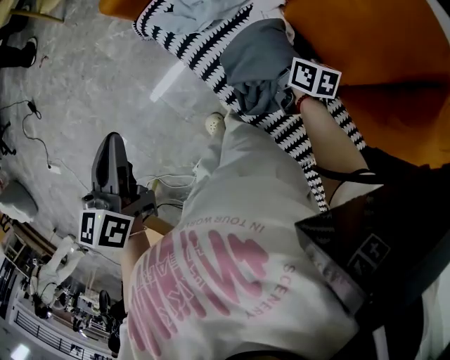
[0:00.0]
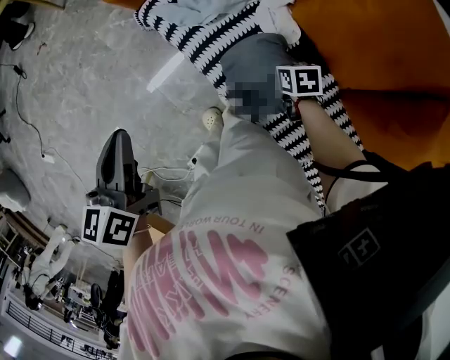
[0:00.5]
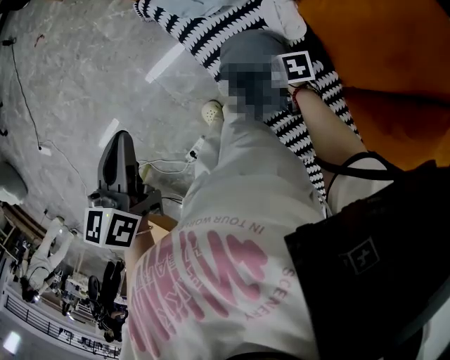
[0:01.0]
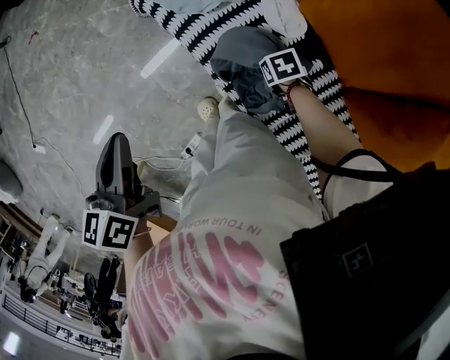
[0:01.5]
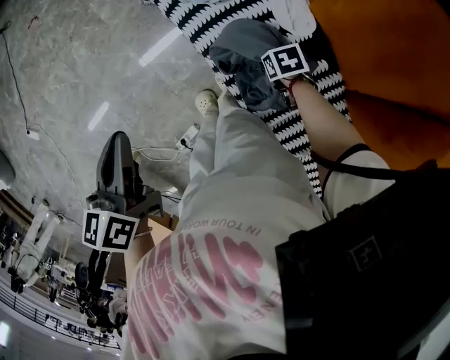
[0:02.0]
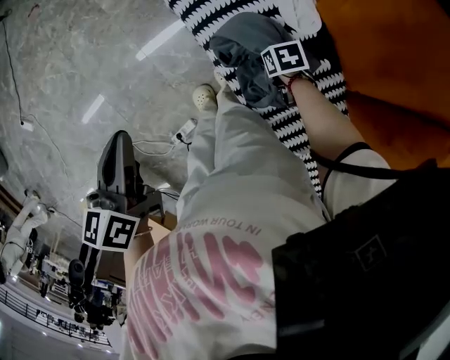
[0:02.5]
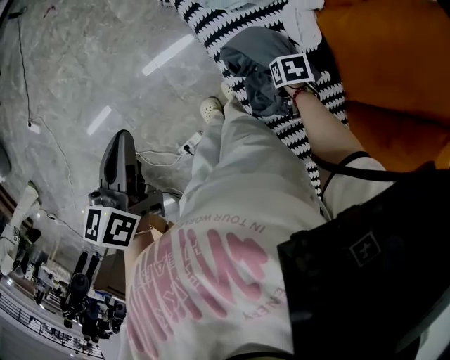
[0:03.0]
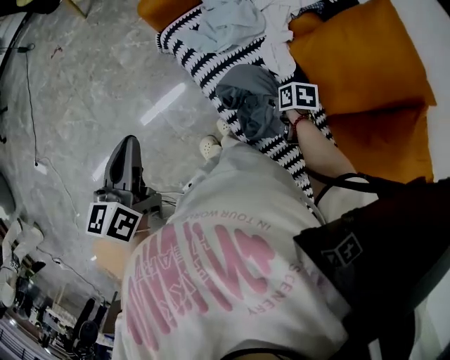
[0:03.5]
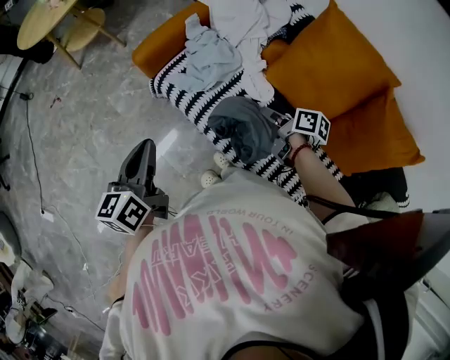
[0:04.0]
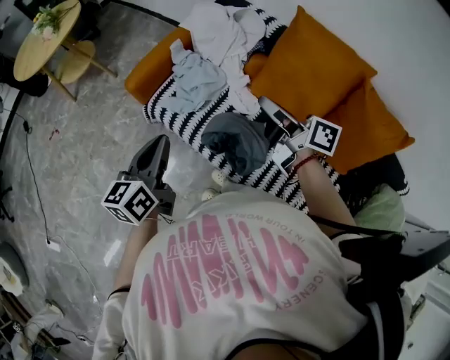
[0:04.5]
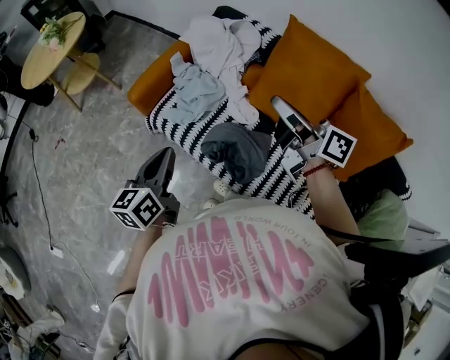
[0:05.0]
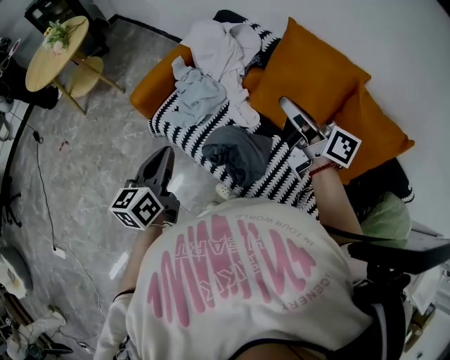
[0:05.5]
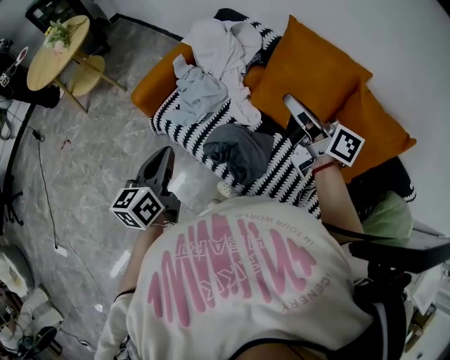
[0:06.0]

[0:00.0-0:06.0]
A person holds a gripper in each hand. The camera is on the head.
0:02.0 to 0:04.0: The left gripper shifts by about 5 cm, and rotates about 30 degrees.
0:04.0 to 0:06.0: The left gripper moves roughly 5 cm.

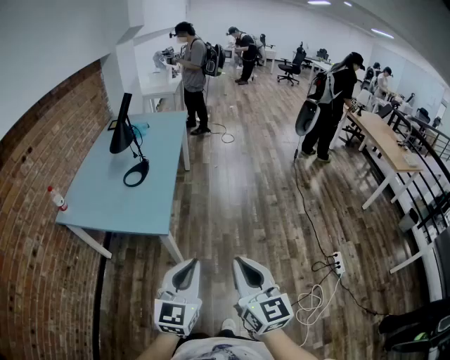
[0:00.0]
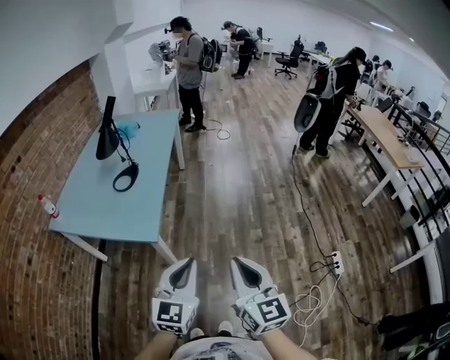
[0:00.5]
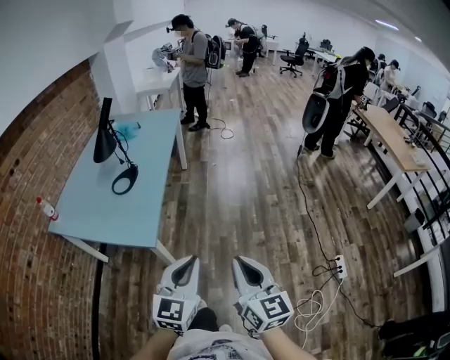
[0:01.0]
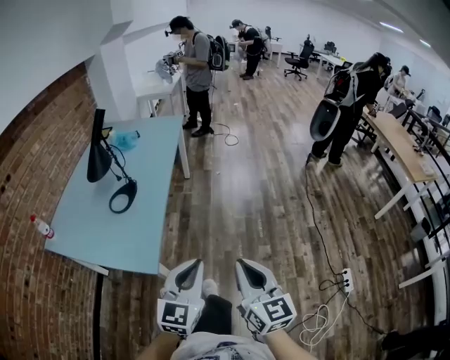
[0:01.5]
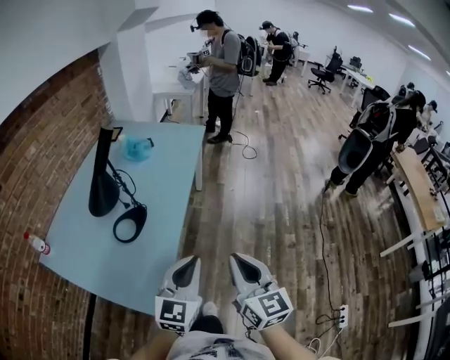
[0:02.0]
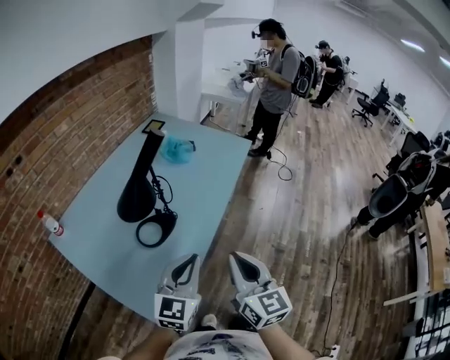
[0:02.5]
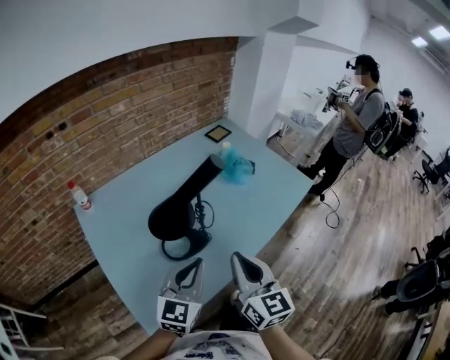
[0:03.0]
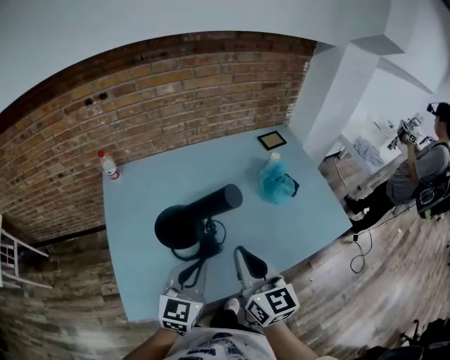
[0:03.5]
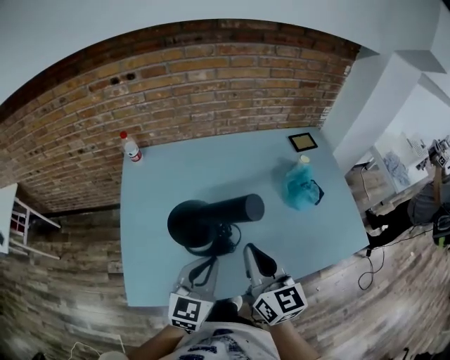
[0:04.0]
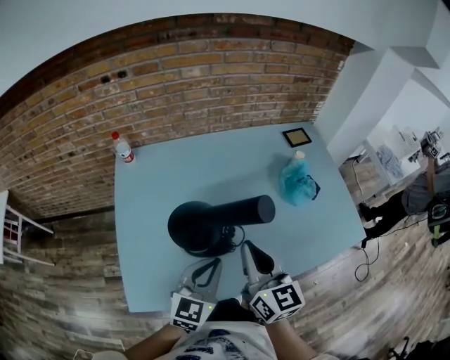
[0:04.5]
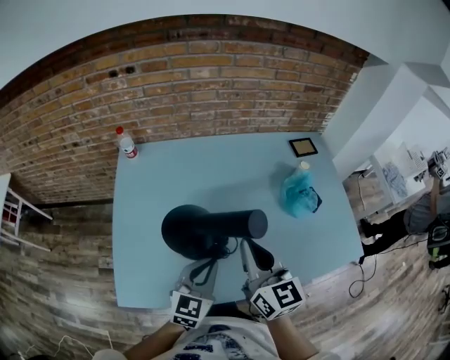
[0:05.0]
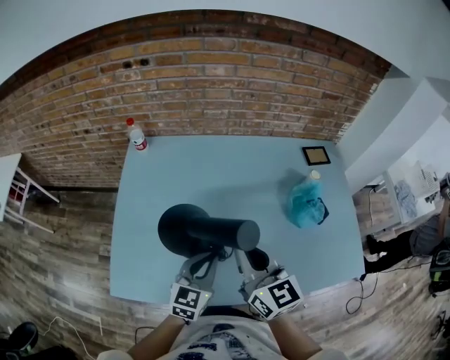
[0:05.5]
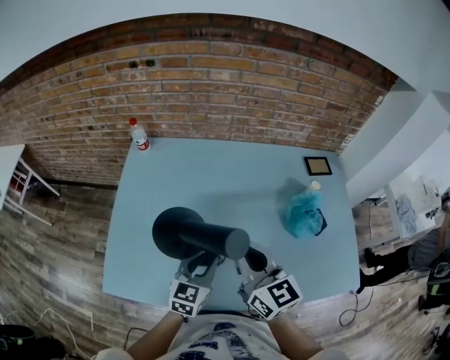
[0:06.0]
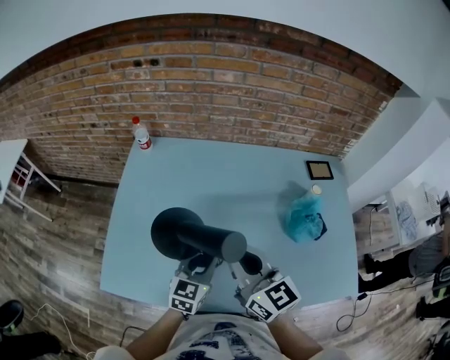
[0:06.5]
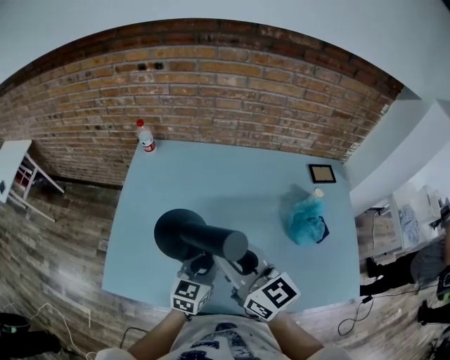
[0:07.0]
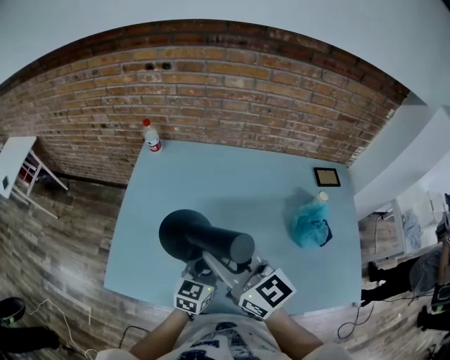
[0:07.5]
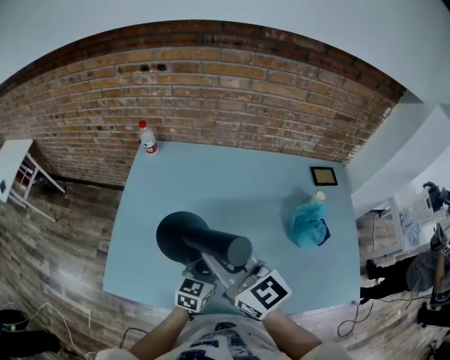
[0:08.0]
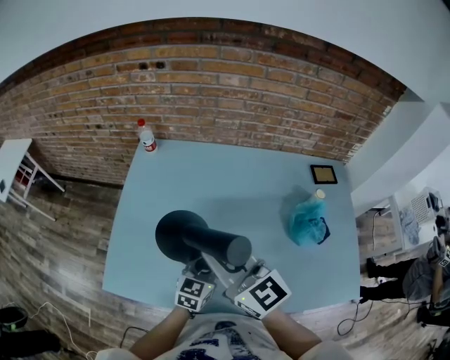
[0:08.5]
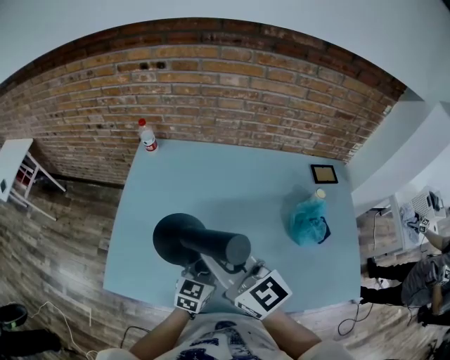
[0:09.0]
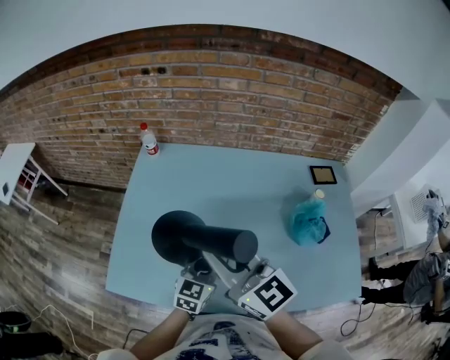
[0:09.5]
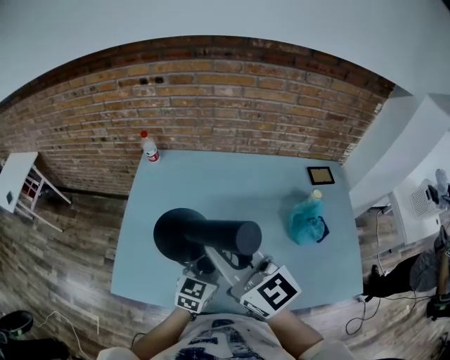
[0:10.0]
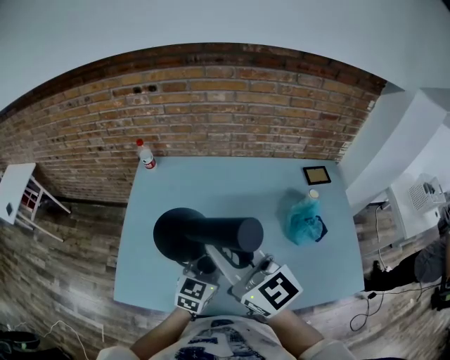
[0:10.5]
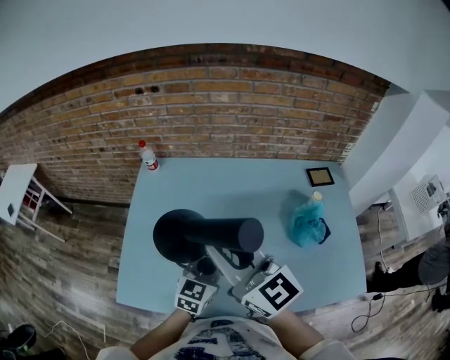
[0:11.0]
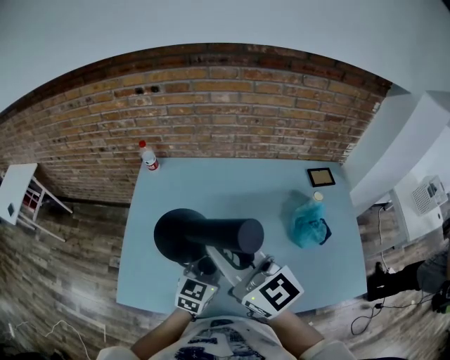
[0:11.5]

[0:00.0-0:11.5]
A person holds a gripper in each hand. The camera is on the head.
0:00.0 to 0:02.0: The pair of grippers is taken forward, approximately 50 cm.
0:02.0 to 0:04.0: The left gripper moves about 35 cm, and changes its angle by some 70 degrees, while the right gripper ends up about 50 cm from where it was, and rotates roughly 70 degrees.
0:04.0 to 0:06.0: The right gripper shifts some 10 cm forward, and turns by approximately 20 degrees, while the left gripper goes approximately 10 cm downward and forward.
0:06.0 to 0:07.5: The right gripper is displaced to the left by some 5 cm, and opens its fingers.
0:07.5 to 0:09.5: The right gripper closes.
0:09.5 to 0:11.5: The two grippers go approximately 5 cm upward.

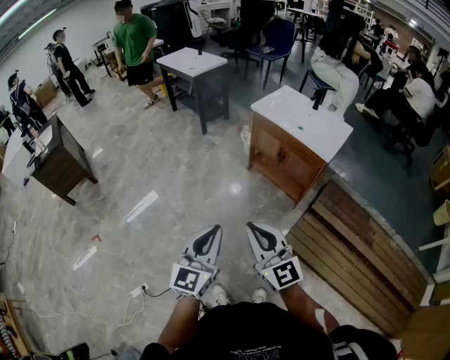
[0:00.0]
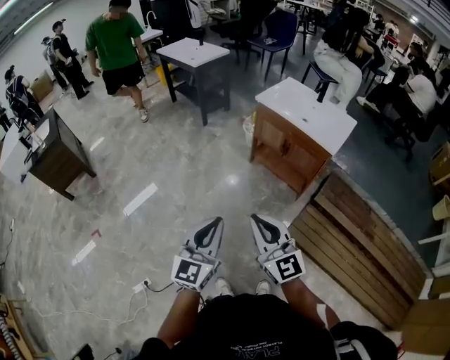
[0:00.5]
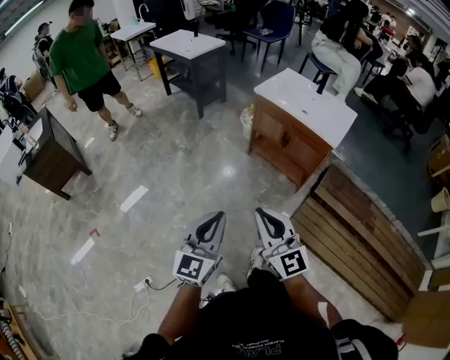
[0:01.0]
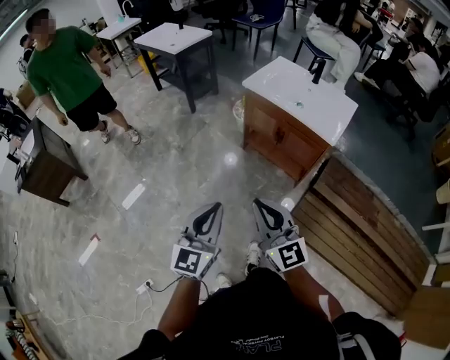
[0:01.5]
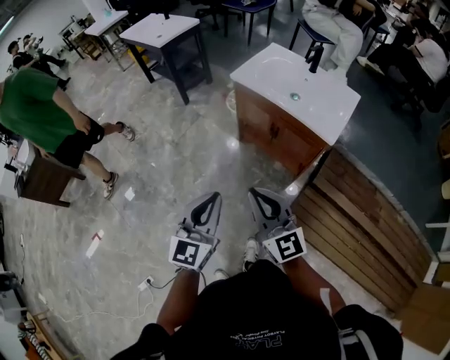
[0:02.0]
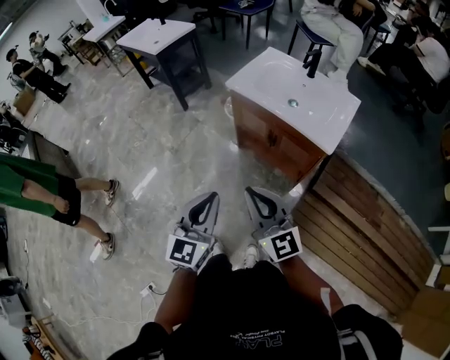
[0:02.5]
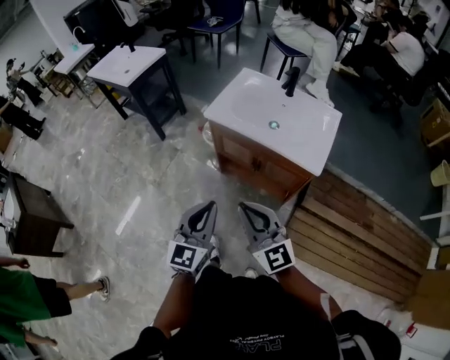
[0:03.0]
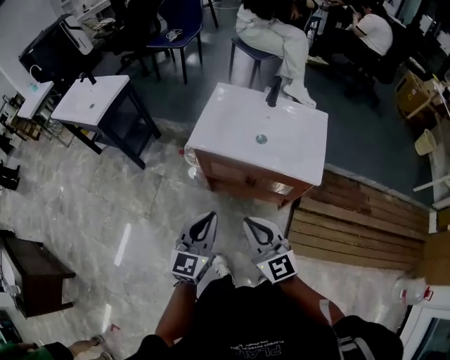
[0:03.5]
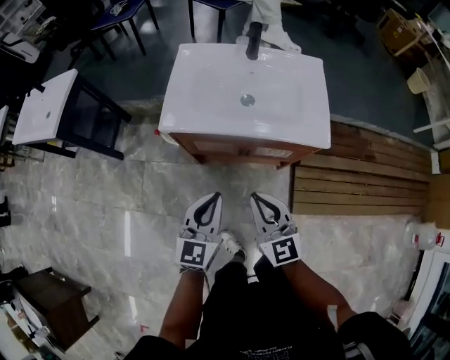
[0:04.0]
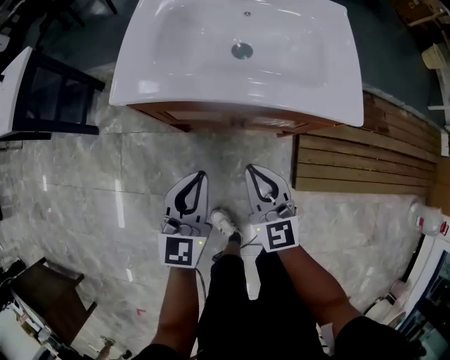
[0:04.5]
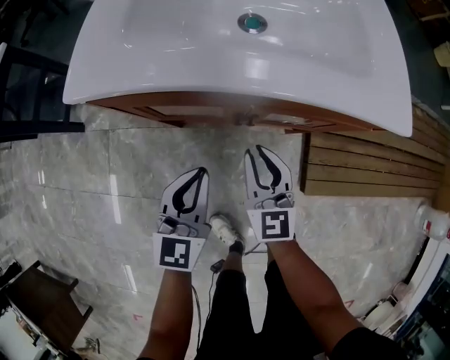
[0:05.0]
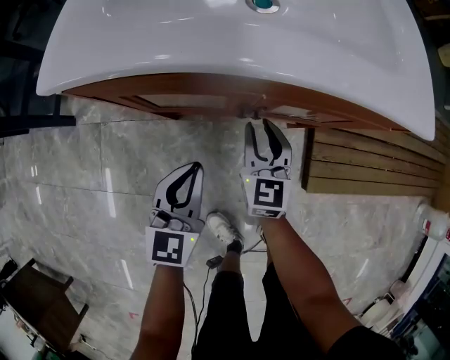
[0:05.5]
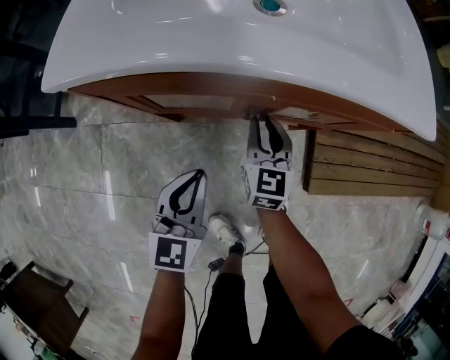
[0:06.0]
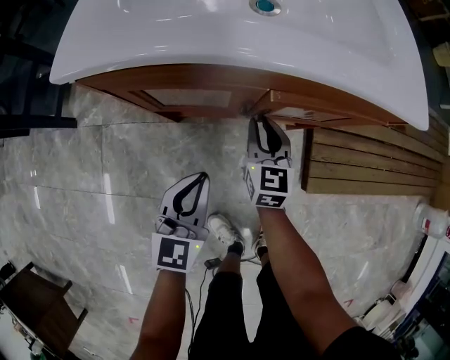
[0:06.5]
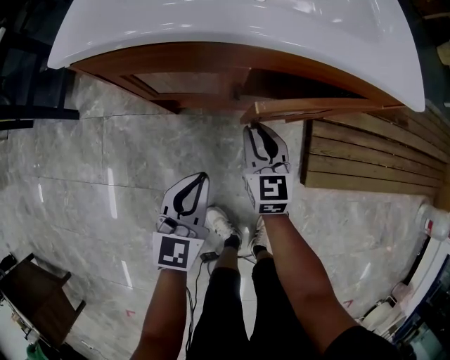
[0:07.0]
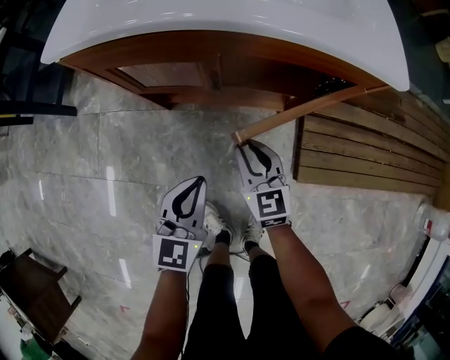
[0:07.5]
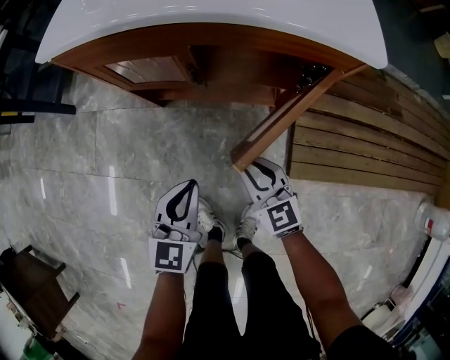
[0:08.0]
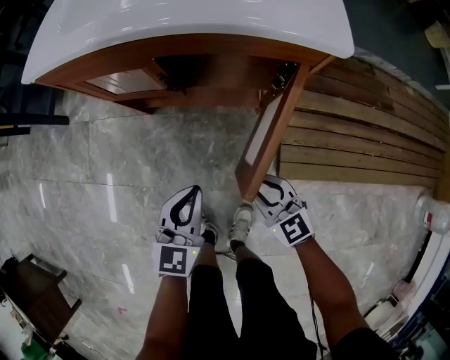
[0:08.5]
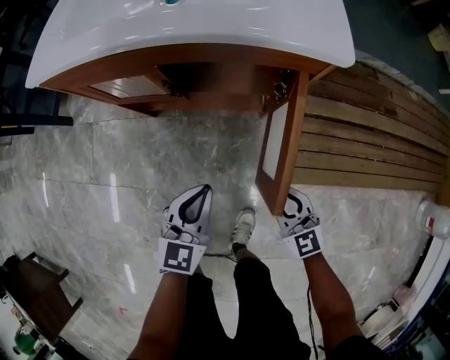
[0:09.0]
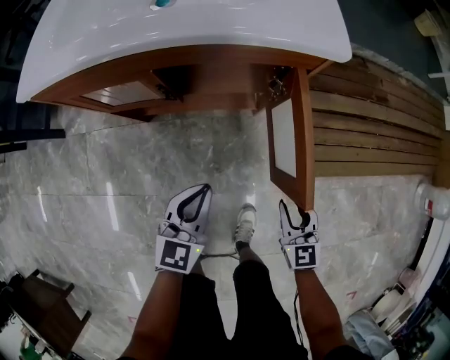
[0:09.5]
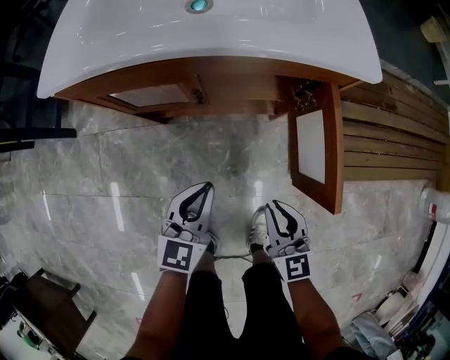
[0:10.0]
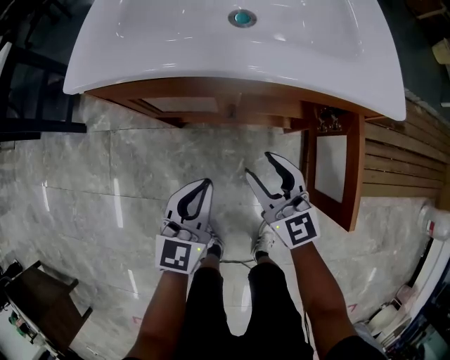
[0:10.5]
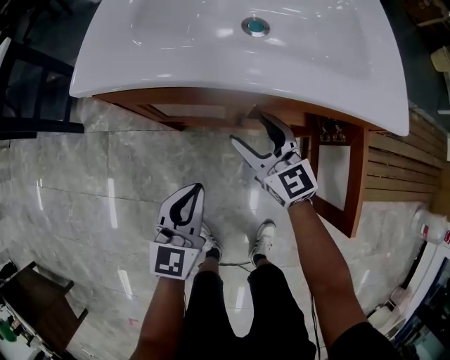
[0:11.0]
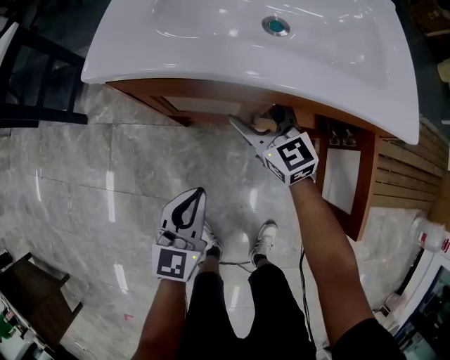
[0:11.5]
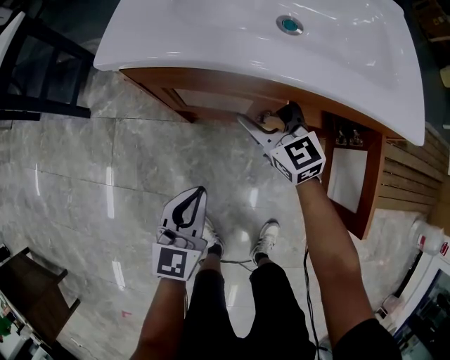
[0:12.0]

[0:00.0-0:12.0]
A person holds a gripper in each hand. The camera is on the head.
0:00.0 to 0:02.0: The two grippers go roughly 25 cm forward and to the right.
0:02.0 to 0:04.0: The left gripper moves approximately 40 cm, and turns by approximately 30 degrees; the right gripper moves roughly 35 cm, and changes its angle by about 40 degrees.
0:04.0 to 0:06.0: The left gripper goes approximately 30 cm downward. Meanwhile the right gripper is displaced downward and forward by roughly 40 cm, and turns by roughly 30 degrees.
0:06.0 to 0:08.0: The grippers both shift backward and to the right by approximately 20 cm. The right gripper swivels approximately 40 degrees.
0:08.0 to 0:10.0: The left gripper moves roughly 10 cm to the right and comes back, while the right gripper travels upward and backward by roughly 10 cm, travels to the right and back again, roughly 15 cm each way, and turns by about 20 degrees.
0:10.0 to 0:12.0: The right gripper goes some 35 cm forward and to the left, changes its angle by approximately 30 degrees, and opens its fingers. The left gripper moves to the left, roughly 15 cm.
